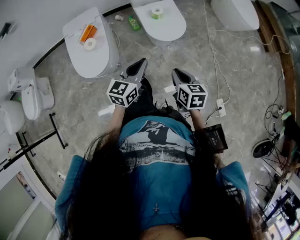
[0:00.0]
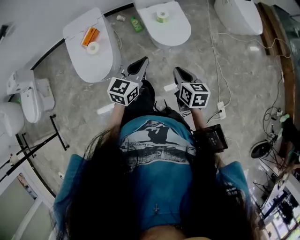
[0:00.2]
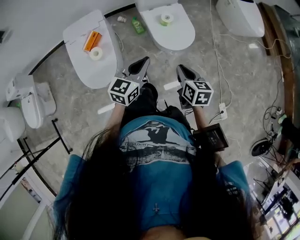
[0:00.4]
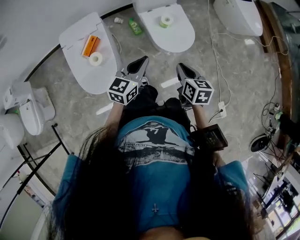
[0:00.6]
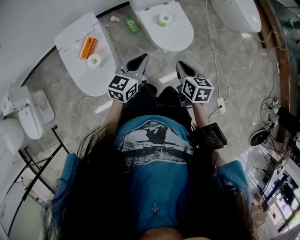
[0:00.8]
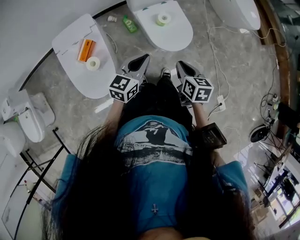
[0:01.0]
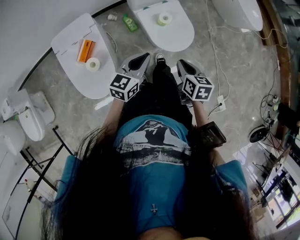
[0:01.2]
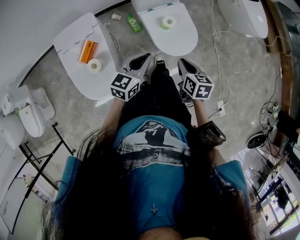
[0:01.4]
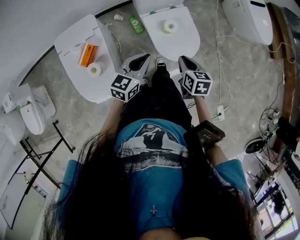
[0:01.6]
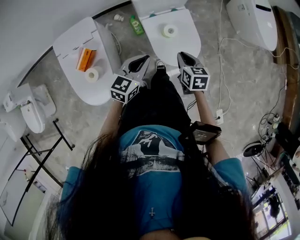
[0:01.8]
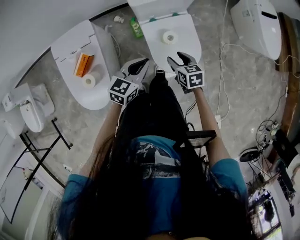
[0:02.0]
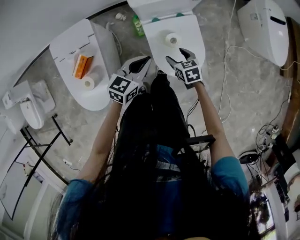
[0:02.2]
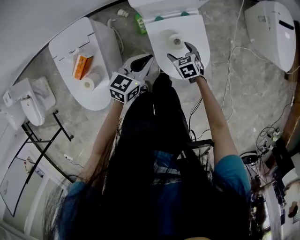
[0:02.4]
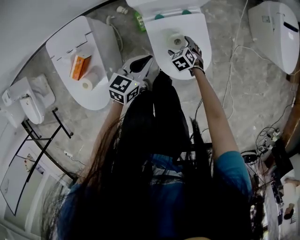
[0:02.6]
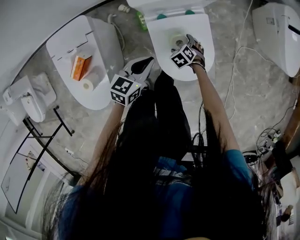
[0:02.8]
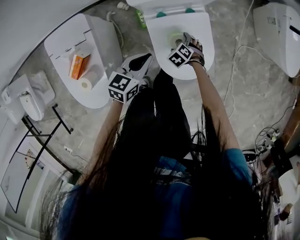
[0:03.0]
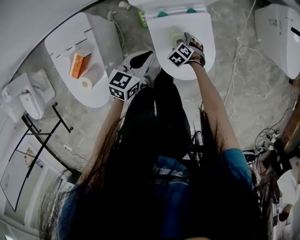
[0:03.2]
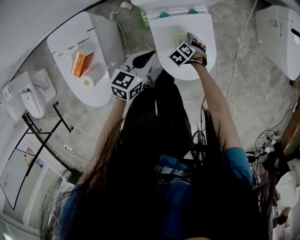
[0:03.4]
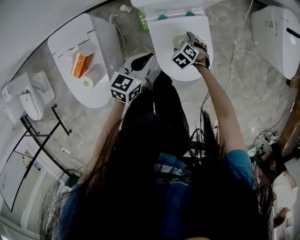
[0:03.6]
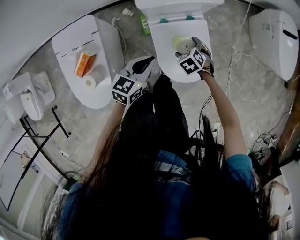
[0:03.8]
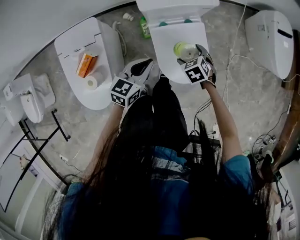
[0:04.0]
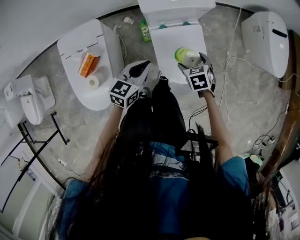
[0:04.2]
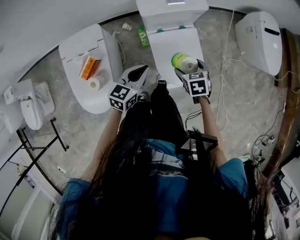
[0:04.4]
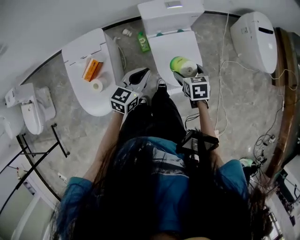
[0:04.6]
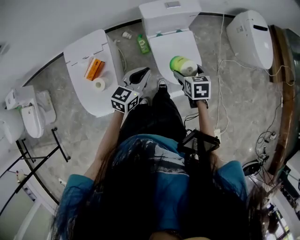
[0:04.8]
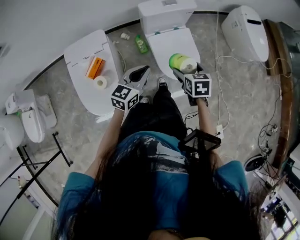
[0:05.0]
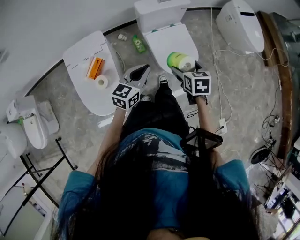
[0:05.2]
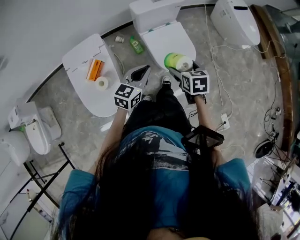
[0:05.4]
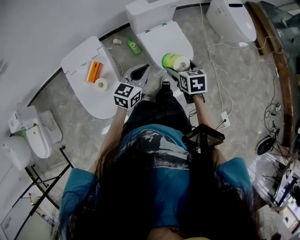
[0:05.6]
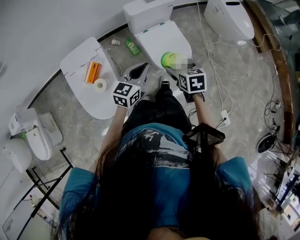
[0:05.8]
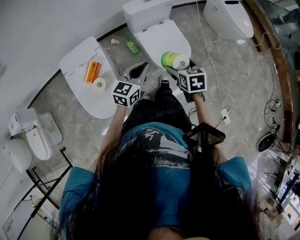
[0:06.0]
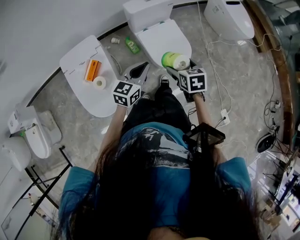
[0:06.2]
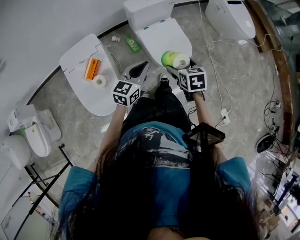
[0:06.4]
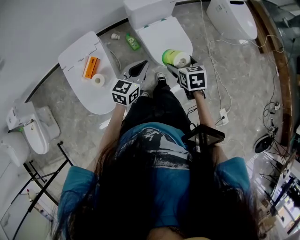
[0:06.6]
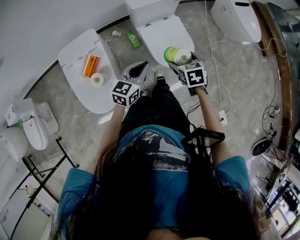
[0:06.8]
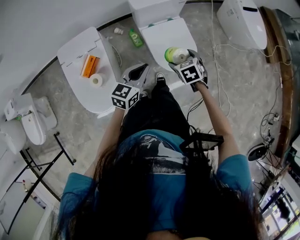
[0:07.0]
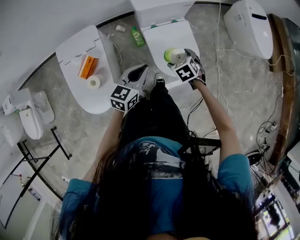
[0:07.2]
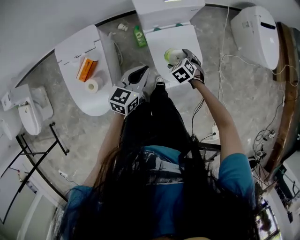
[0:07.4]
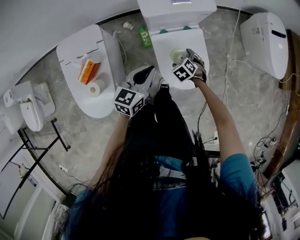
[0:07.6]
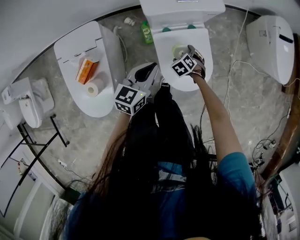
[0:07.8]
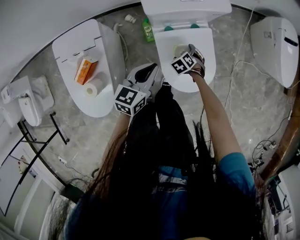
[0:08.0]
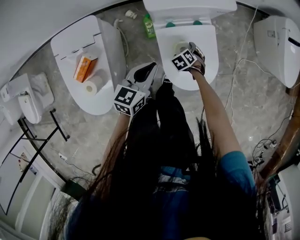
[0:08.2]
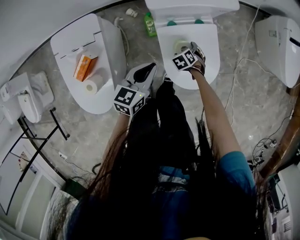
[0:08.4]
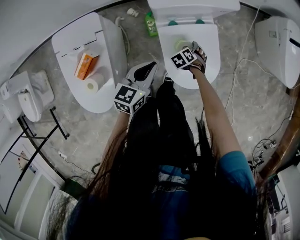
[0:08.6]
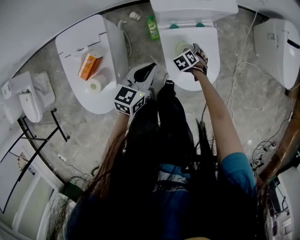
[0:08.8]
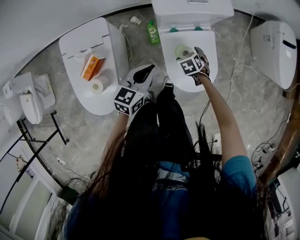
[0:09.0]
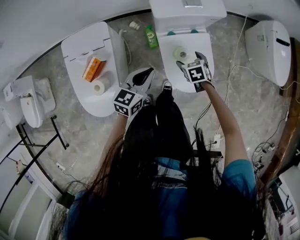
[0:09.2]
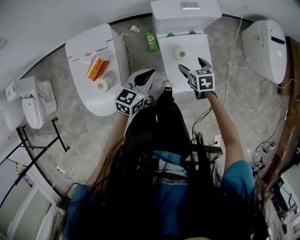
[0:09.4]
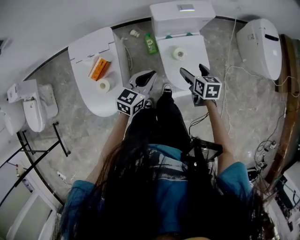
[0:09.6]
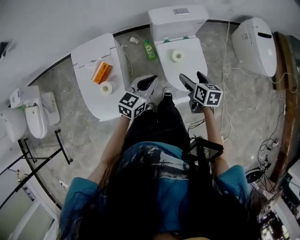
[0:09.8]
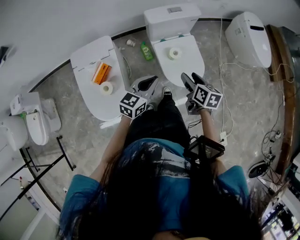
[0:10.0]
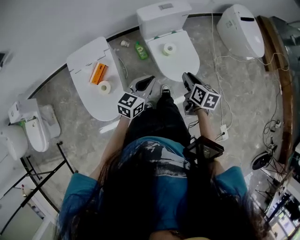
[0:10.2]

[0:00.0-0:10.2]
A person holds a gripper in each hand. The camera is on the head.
0:00.0 to 0:01.4: Both grippers move forward and to the left, some 30 cm.
0:01.4 to 0:03.0: The right gripper shifts roughly 35 cm downward, rotates around the line of its fingers by some 60 degrees, counterclockwise from behind, and opens. The left gripper ends up approximately 30 cm from where it was.
0:03.0 to 0:04.4: The left gripper moves upward, about 15 cm. Meanwhile the right gripper travels upward by some 30 cm, and rotates about 40 degrees.
0:04.4 to 0:05.8: Both grippers move backward and upward, about 20 cm. The right gripper swivels approximately 20 degrees.
0:05.8 to 0:07.2: The left gripper moves forward and downward, about 10 cm. Meanwhile the right gripper goes some 20 cm forward and downward, and changes its angle by about 40 degrees.
0:07.2 to 0:08.8: The left gripper ends up roughly 15 cm from where it was, while the right gripper goes about 25 cm downward.
0:08.8 to 0:10.2: The left gripper ends up approximately 25 cm from where it was. Meanwhile the right gripper goes about 35 cm upward, twists roughly 60 degrees clockwise, seen from behind, and closes up.

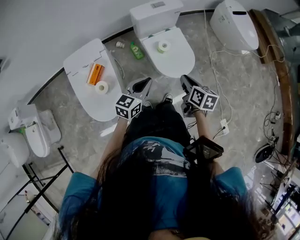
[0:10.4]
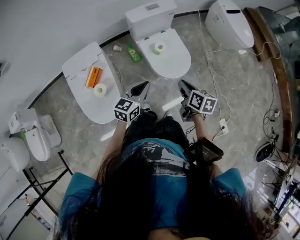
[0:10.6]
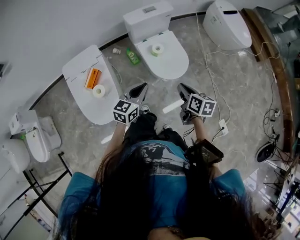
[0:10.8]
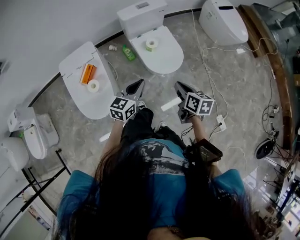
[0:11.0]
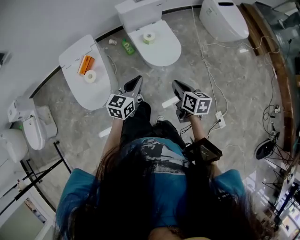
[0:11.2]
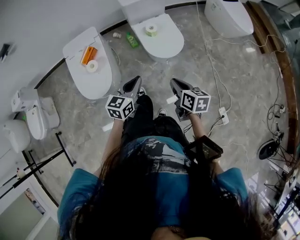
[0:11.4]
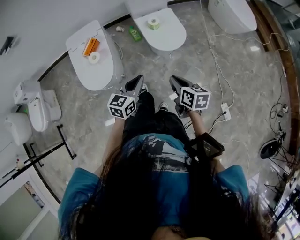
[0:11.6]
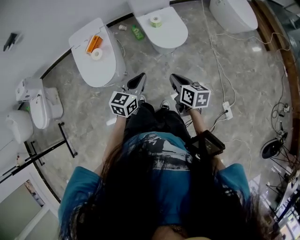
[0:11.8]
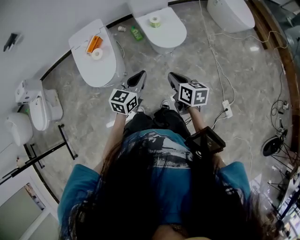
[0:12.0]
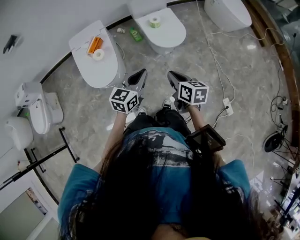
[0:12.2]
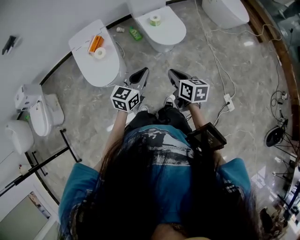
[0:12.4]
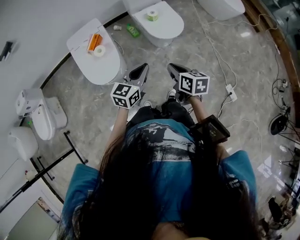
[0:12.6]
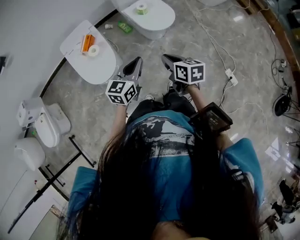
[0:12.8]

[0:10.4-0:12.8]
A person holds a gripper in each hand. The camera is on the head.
0:10.4 to 0:11.6: The right gripper travels backward by some 25 cm. The left gripper heads backward and to the right, covering some 25 cm.
0:11.6 to 0:12.8: The two grippers go about 15 cm to the left and backward.

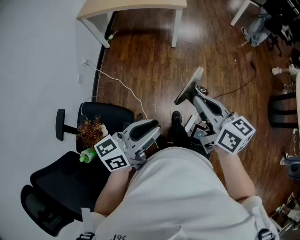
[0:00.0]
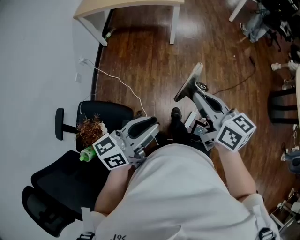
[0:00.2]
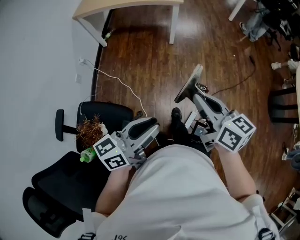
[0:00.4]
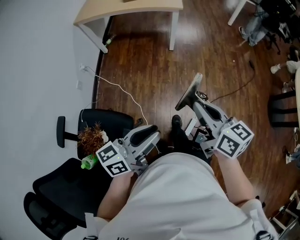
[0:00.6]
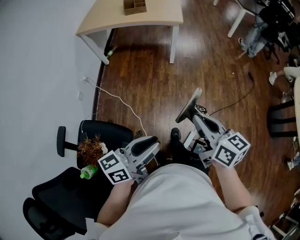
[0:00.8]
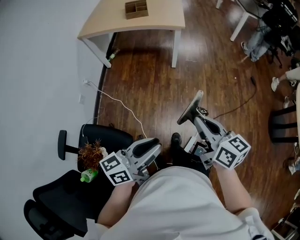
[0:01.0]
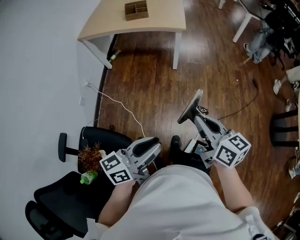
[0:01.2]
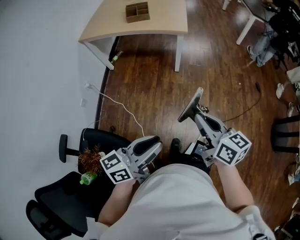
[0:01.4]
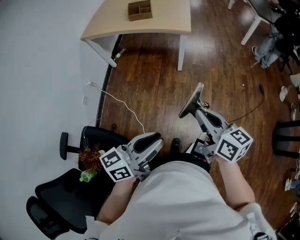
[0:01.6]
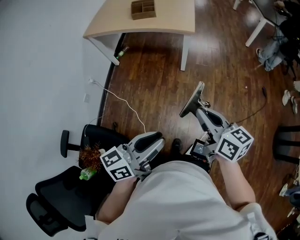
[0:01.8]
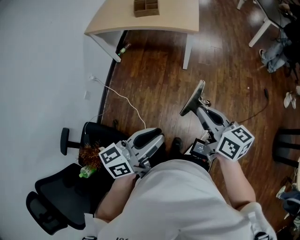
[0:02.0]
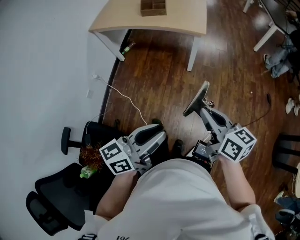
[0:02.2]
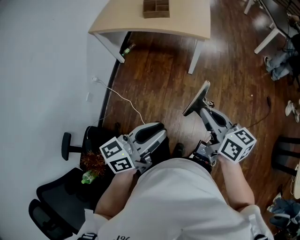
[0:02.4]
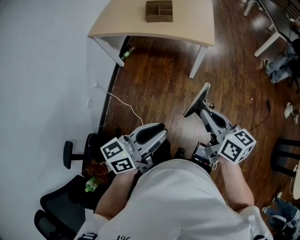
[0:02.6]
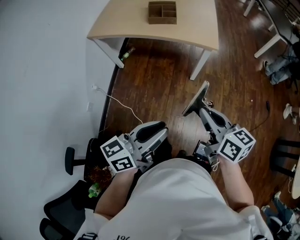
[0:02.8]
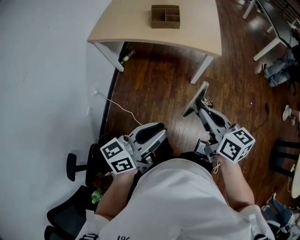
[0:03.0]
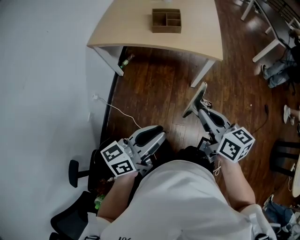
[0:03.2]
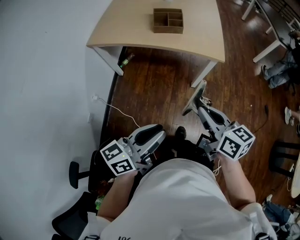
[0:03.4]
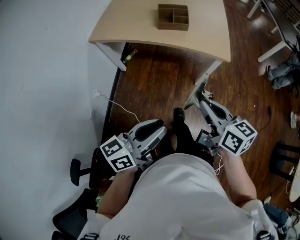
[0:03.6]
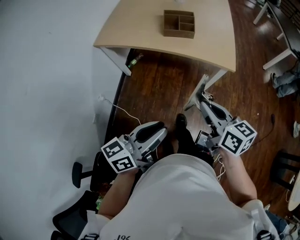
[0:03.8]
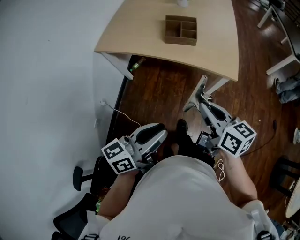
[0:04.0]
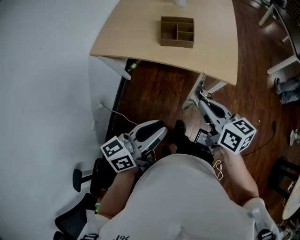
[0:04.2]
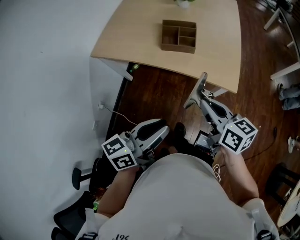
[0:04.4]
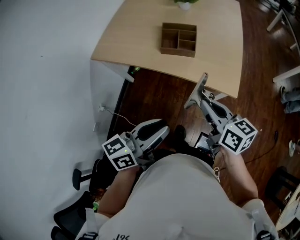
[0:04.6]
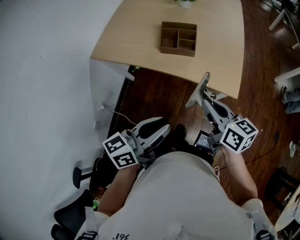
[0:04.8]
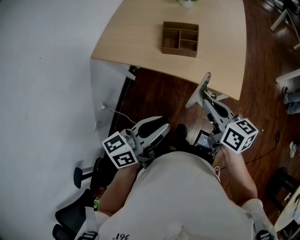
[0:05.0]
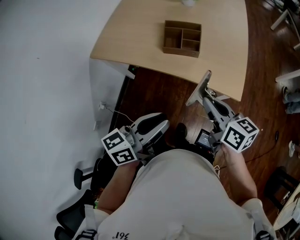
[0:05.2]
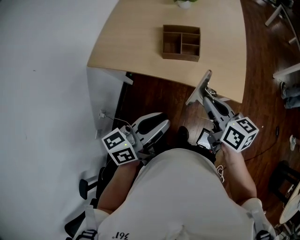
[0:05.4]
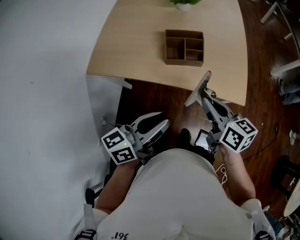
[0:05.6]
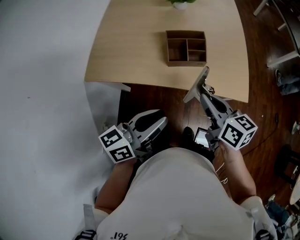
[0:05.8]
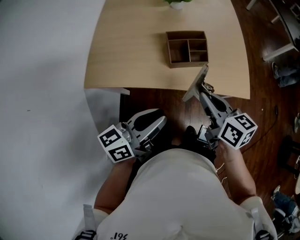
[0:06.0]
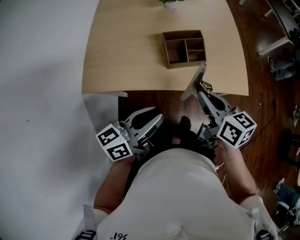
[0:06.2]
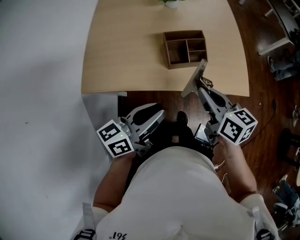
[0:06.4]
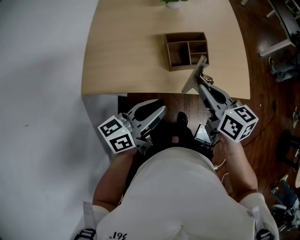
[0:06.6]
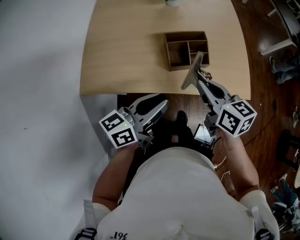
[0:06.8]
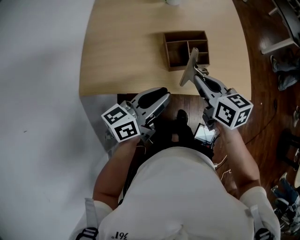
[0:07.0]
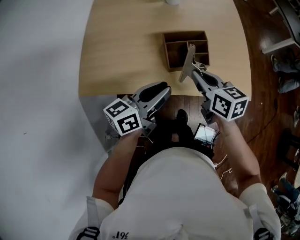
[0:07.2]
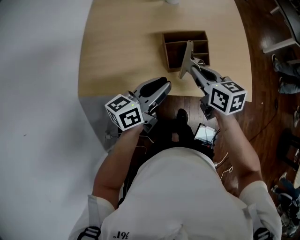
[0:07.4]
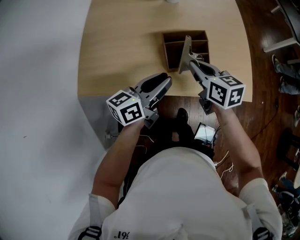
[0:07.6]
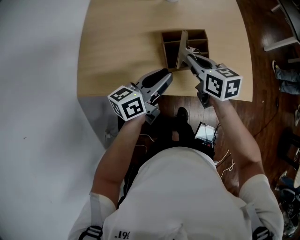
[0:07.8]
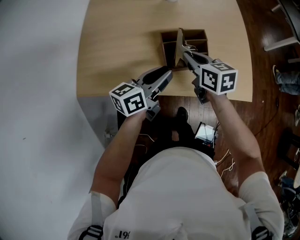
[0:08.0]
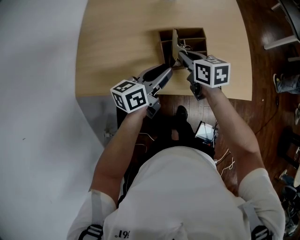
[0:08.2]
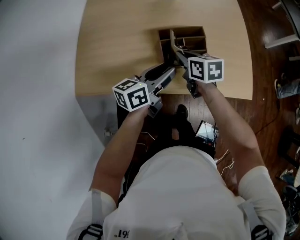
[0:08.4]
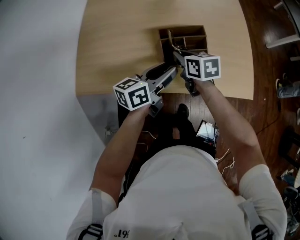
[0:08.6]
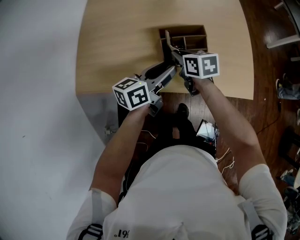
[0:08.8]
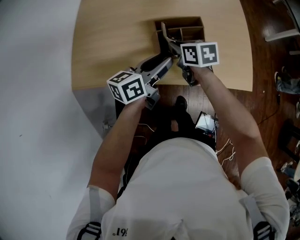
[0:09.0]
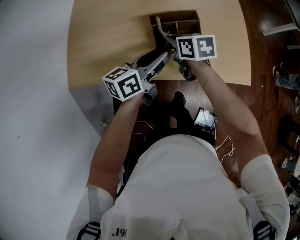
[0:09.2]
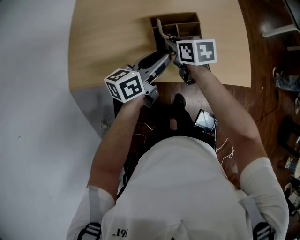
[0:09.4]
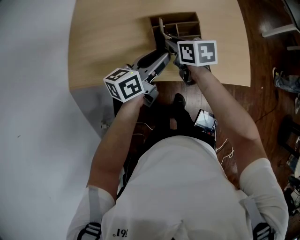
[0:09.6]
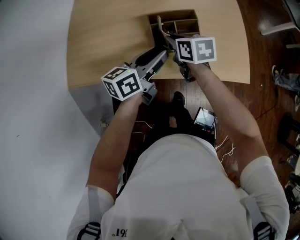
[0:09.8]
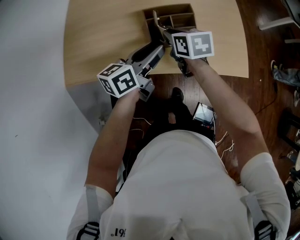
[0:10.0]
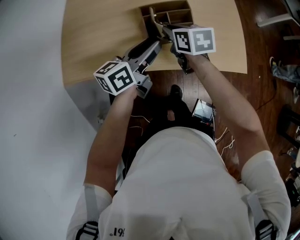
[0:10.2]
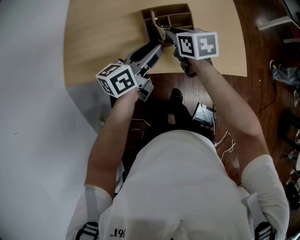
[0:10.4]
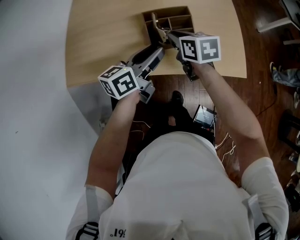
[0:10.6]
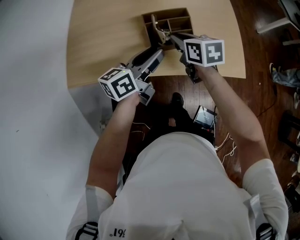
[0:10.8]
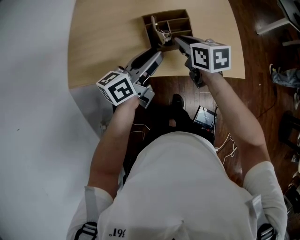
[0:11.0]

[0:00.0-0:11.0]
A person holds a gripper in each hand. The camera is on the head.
0:00.0 to 0:01.6: Both grippers move forward, some 20 cm.
0:01.6 to 0:03.2: The two grippers go roughly 30 cm forward and to the left.
0:03.2 to 0:04.8: The two grippers go some 30 cm forward.
0:04.8 to 0:06.2: The grippers both shift to the left and forward by about 20 cm.
0:06.2 to 0:07.8: Both grippers move forward, roughly 15 cm.
0:07.8 to 0:09.4: The right gripper is displaced downward by roughly 5 cm.
0:09.4 to 0:11.0: The right gripper is displaced to the right by roughly 5 cm.
